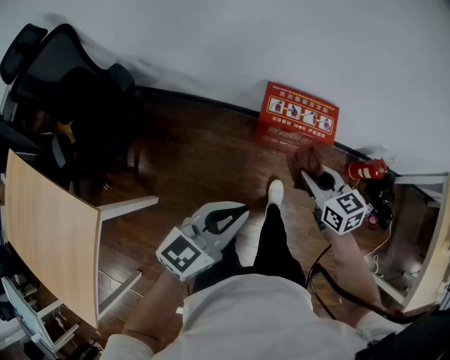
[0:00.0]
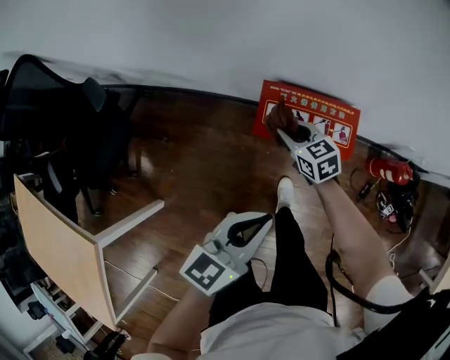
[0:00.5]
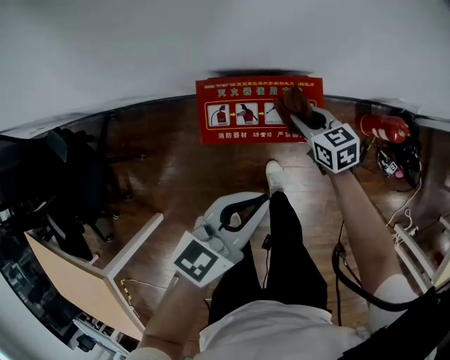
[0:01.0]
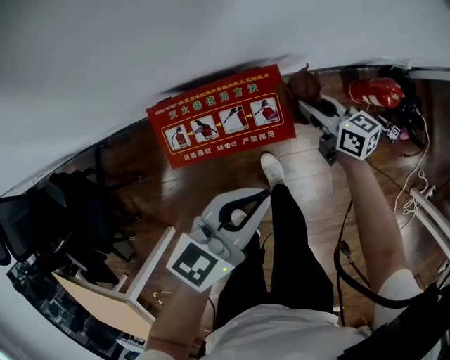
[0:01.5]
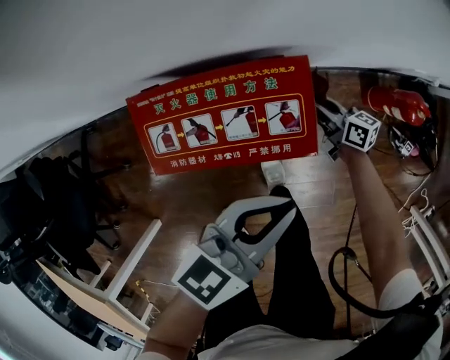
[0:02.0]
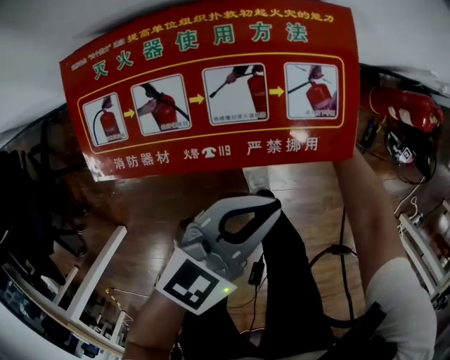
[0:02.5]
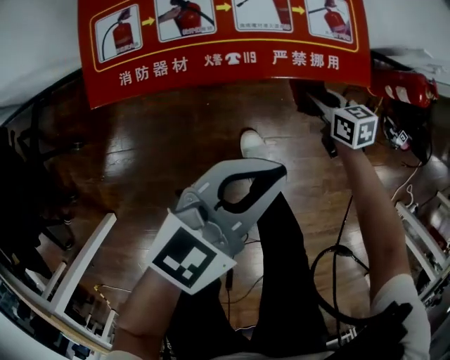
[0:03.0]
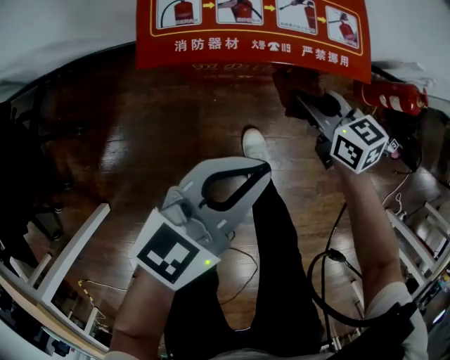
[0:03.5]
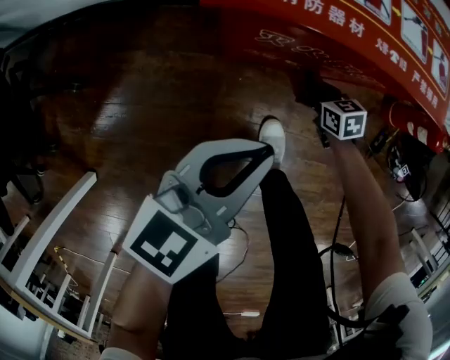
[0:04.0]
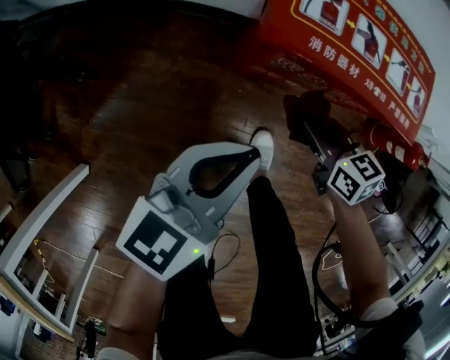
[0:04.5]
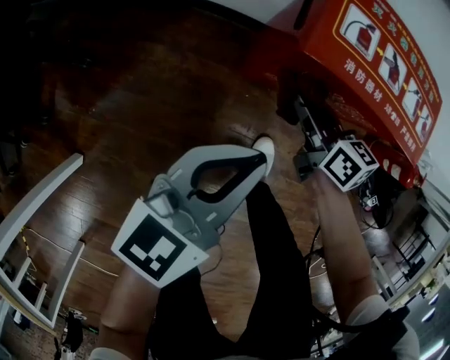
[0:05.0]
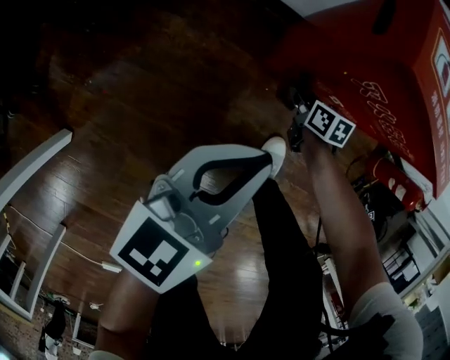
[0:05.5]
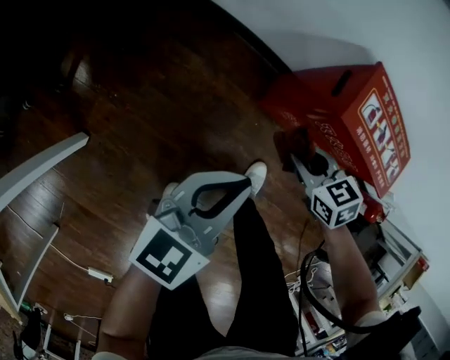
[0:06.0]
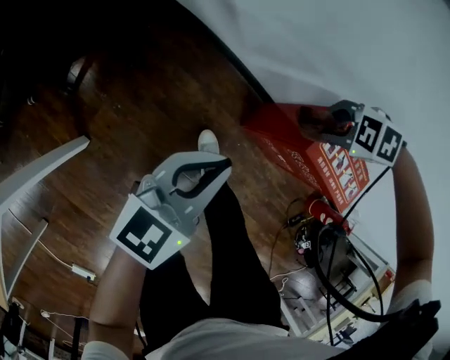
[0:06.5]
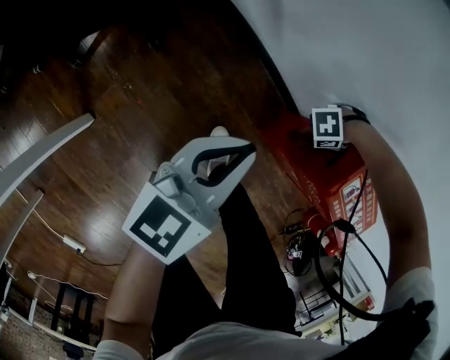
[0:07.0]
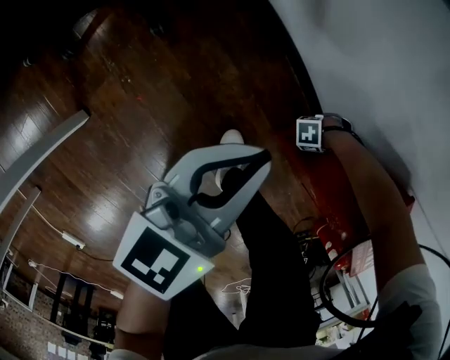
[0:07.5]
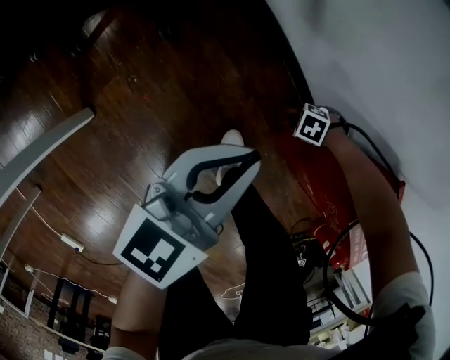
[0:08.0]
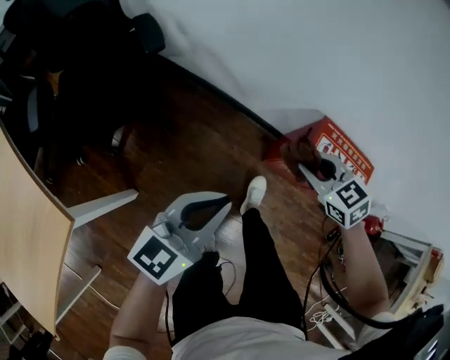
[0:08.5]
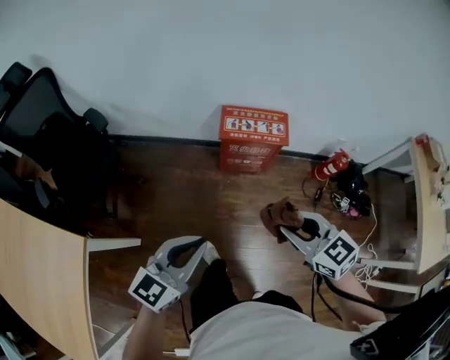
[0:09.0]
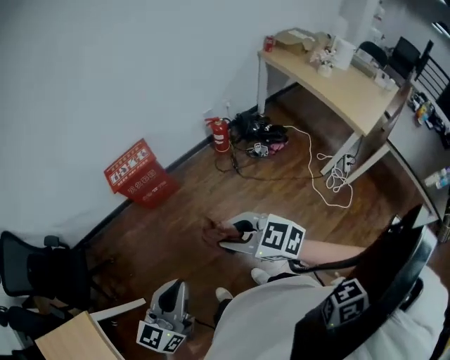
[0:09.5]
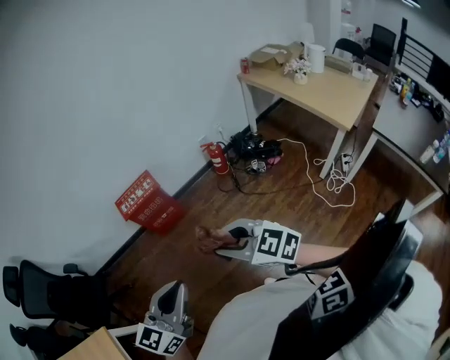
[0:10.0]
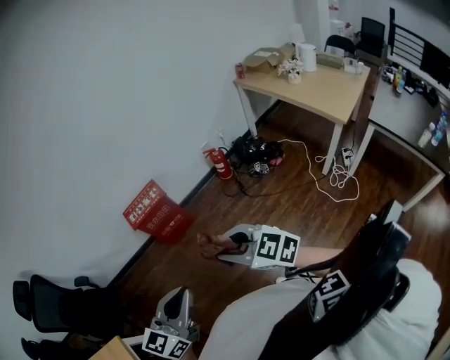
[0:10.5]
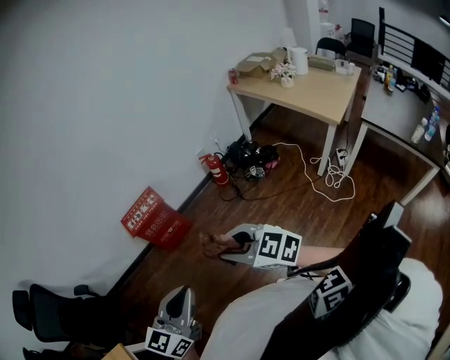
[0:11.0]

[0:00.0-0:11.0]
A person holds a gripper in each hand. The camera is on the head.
0:00.0 to 0:02.0: The right gripper shifts about 60 cm downward, forward and to the right, and rotates around the line of its fingers by roughly 40 degrees, clockwise from behind; the left gripper is displaced forward, to the right and downward by approximately 50 cm, and swivels about 20 degrees.
0:02.0 to 0:03.5: The left gripper shifts about 20 cm backward, to the left and downward; the right gripper goes approximately 15 cm backward and to the left, travels downward and back again, roughly 15 cm each way, and rotates roughly 30 degrees.
0:03.5 to 0:05.5: The right gripper moves up and down over roughly 25 cm, changing direction 2 times, and rotates approximately 20 degrees, while the left gripper is displaced to the left and downward by roughly 20 cm, and changes its angle by approximately 30 degrees.
0:05.5 to 0:07.5: The right gripper reaches about 40 cm upward, then returns, and turns by some 150 degrees. Meanwhile the left gripper moves roughly 20 cm upward and comes back, and swivels roughly 30 degrees.
0:07.5 to 0:09.0: The pair of grippers is taken about 40 cm. The right gripper shifts roughly 70 cm upward, and rotates about 140 degrees. The left gripper swivels about 50 degrees.
0:09.0 to 0:11.0: The right gripper is displaced backward, to the right and upward by some 35 cm, and swivels some 20 degrees, while the left gripper heads to the right, backward and upward, covering about 35 cm, and changes its angle by some 30 degrees.

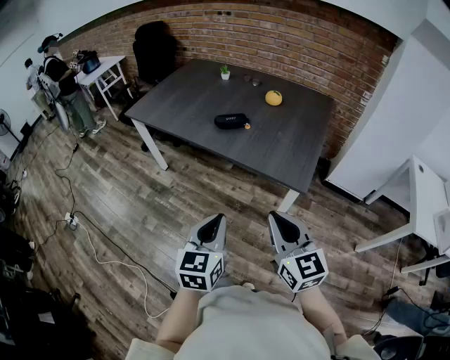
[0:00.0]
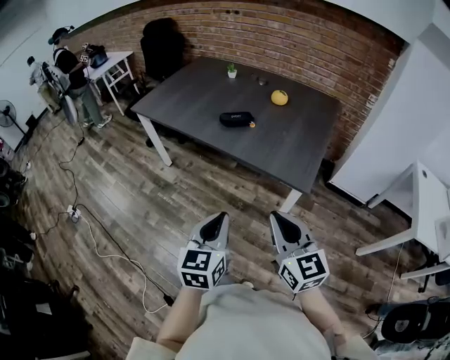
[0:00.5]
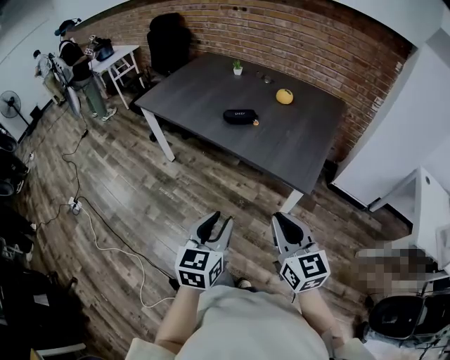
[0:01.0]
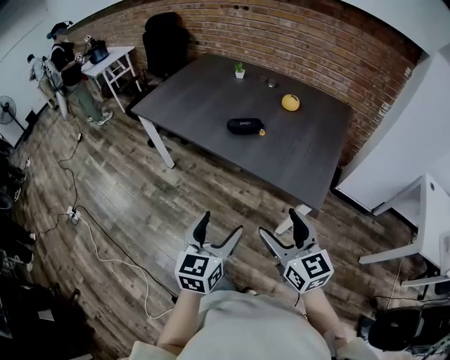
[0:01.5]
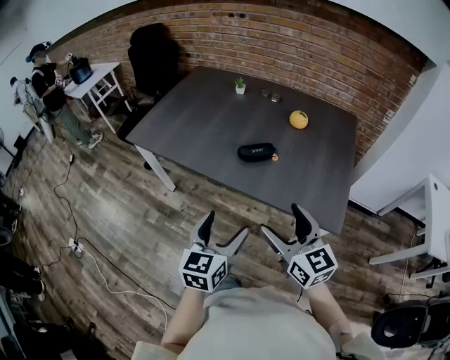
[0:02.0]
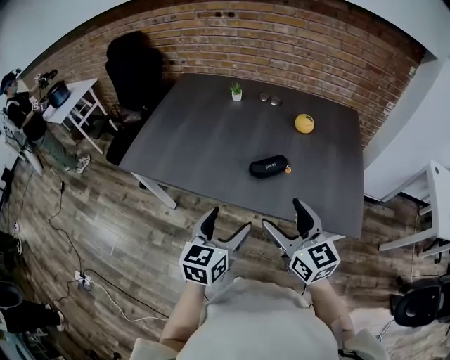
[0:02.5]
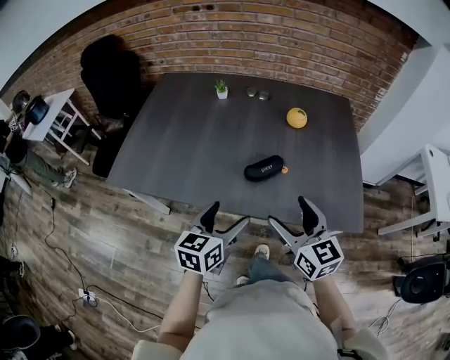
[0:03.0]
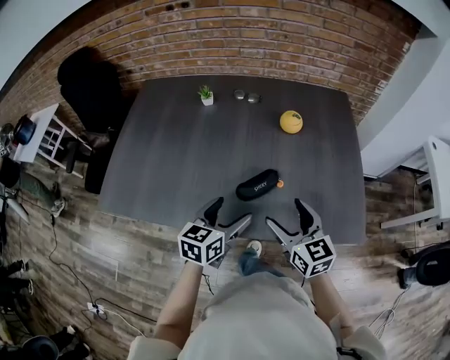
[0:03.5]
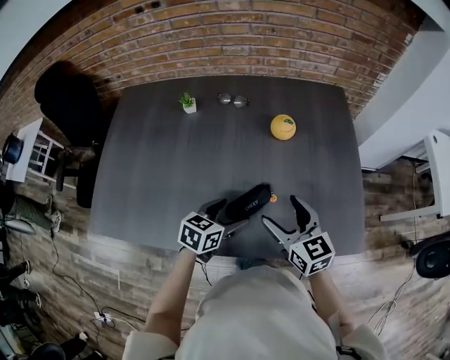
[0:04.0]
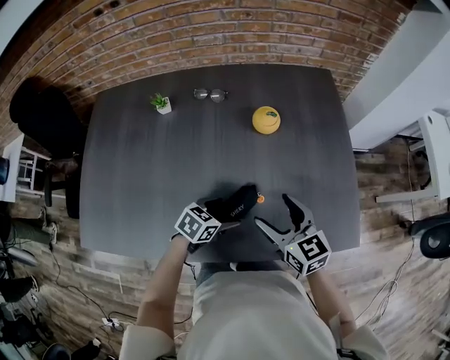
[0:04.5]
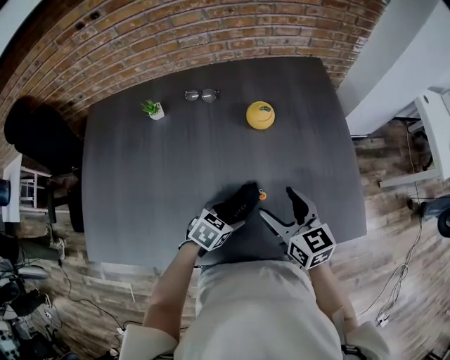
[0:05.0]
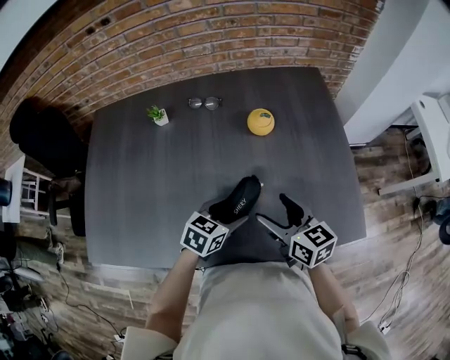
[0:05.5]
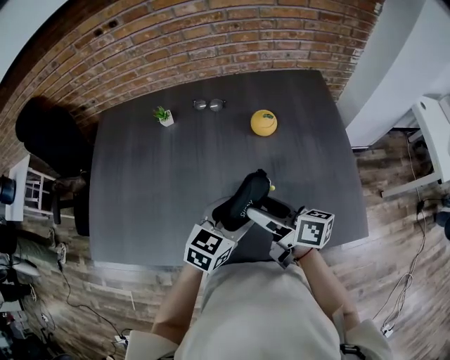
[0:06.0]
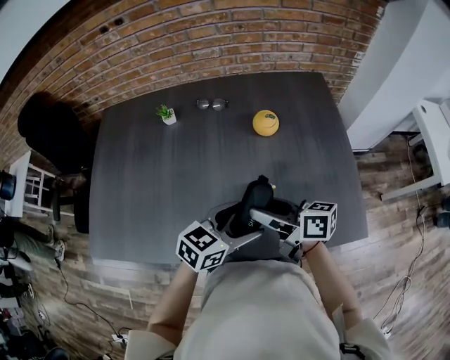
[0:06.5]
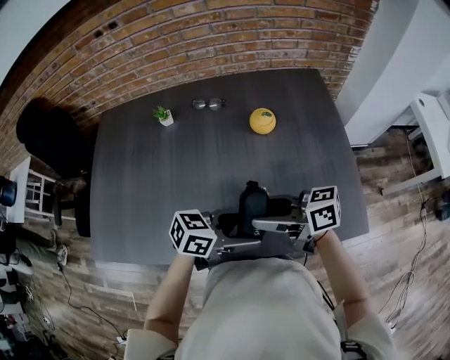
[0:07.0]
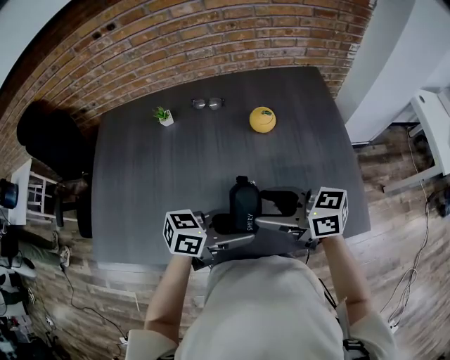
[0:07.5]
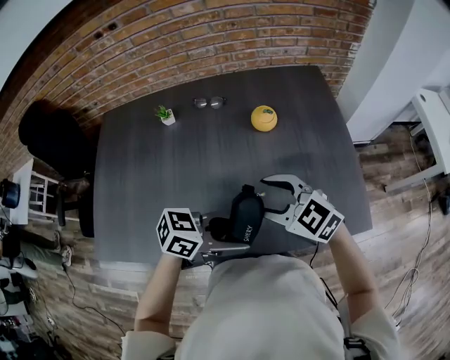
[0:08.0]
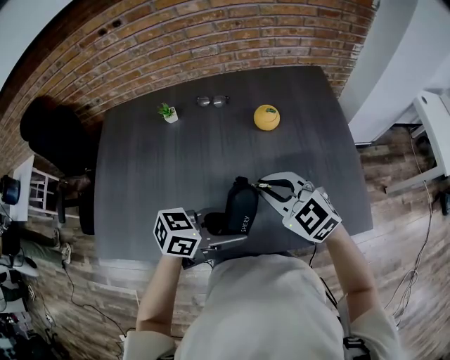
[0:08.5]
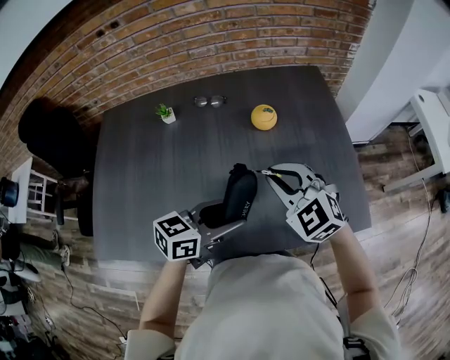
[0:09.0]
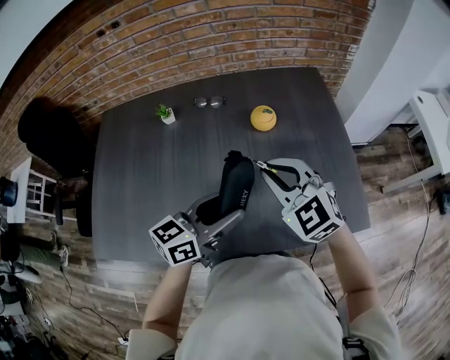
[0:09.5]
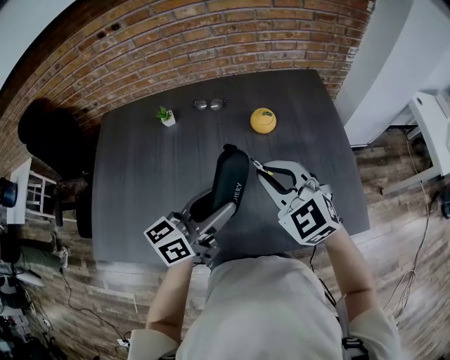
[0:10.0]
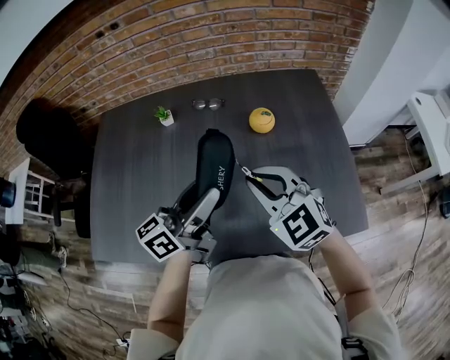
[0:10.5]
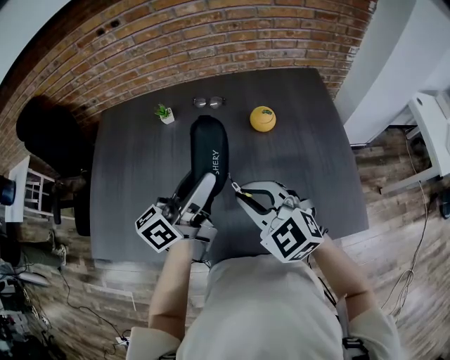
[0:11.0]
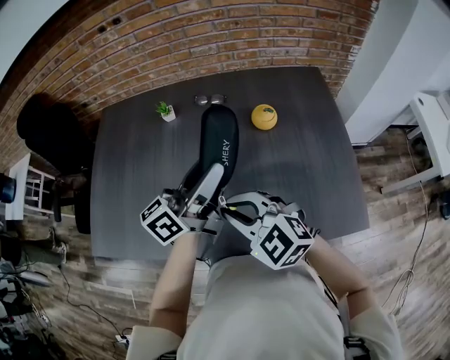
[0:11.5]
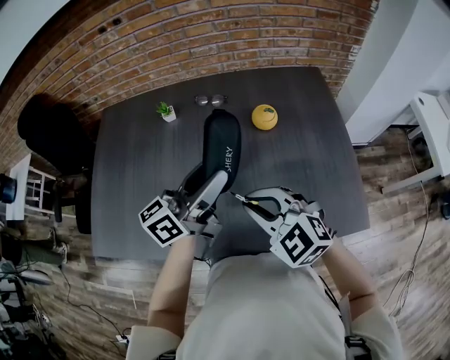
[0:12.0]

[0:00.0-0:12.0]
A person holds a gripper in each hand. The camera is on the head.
0:00.0 to 0:02.0: Both grippers move forward and to the left, about 25 cm. The right gripper opens its fingers. Meanwhile the left gripper opens its fingers.
0:02.0 to 0:04.0: The right gripper ends up roughly 30 cm from where it was, and swivels approximately 20 degrees. Meanwhile the left gripper moves roughly 35 cm, and swivels roughly 50 degrees.
0:04.0 to 0:06.0: The right gripper rolls clockwise, seen from behind, by about 40 degrees. The left gripper goes approximately 5 cm upward.
0:06.0 to 0:08.0: The right gripper twists about 70 degrees counterclockwise, seen from behind. Meanwhile the left gripper moves approximately 10 cm, and rotates some 50 degrees.
0:08.0 to 0:10.0: The left gripper ends up approximately 10 cm from where it was, and swivels roughly 50 degrees, while the right gripper heads upward, covering roughly 5 cm, swivels some 20 degrees, and closes.
0:10.0 to 0:12.0: The left gripper is displaced upward by approximately 5 cm, while the right gripper moves backward, roughly 5 cm.

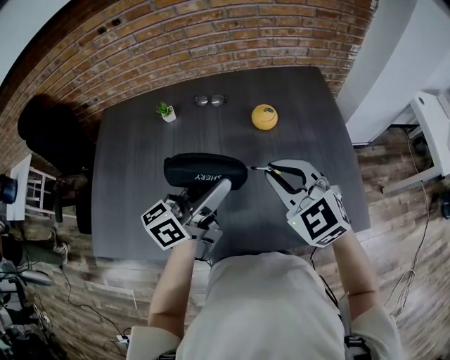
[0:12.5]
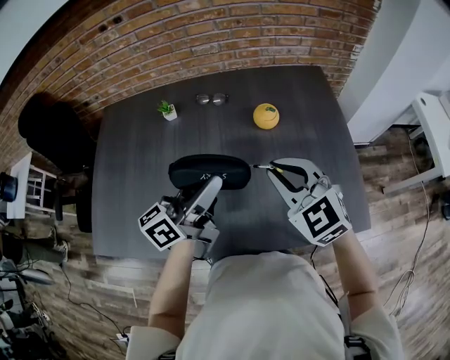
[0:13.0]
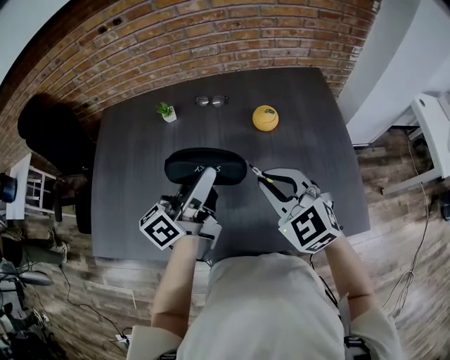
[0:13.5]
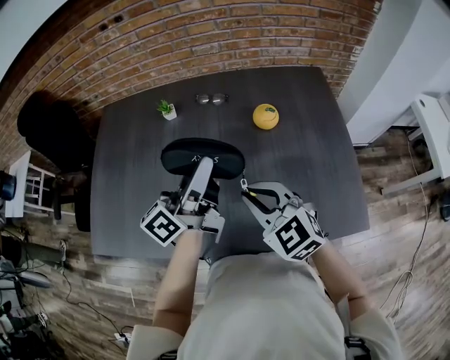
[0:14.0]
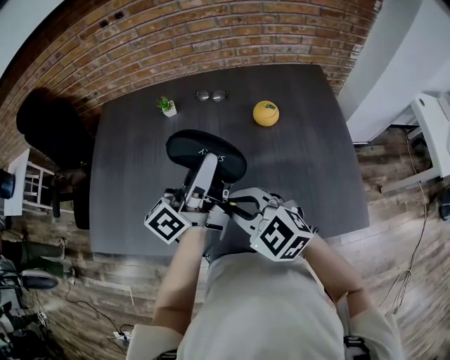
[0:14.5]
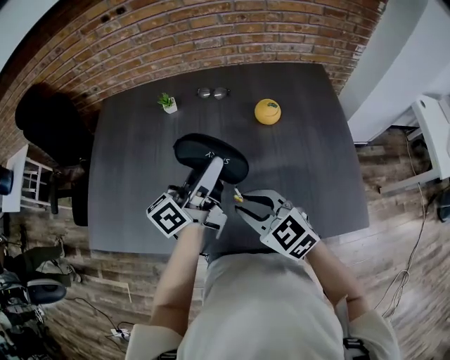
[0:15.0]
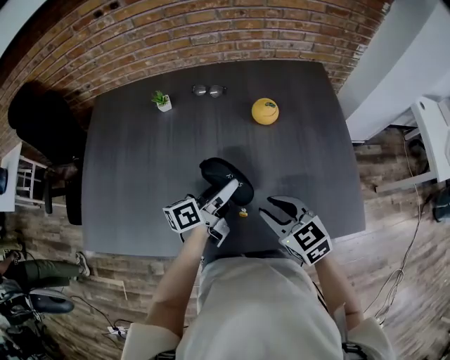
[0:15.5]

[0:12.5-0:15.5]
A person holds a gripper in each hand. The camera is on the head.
0:12.5 to 0:14.0: The left gripper ends up approximately 5 cm from where it was. The right gripper goes about 5 cm to the left.
0:14.0 to 0:15.5: The left gripper is displaced downward by approximately 20 cm, and swivels approximately 30 degrees; the right gripper goes some 10 cm downward and to the right, and rotates roughly 20 degrees.
